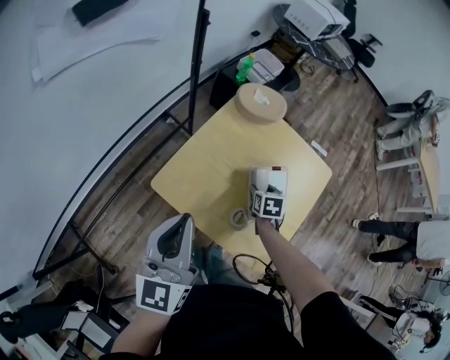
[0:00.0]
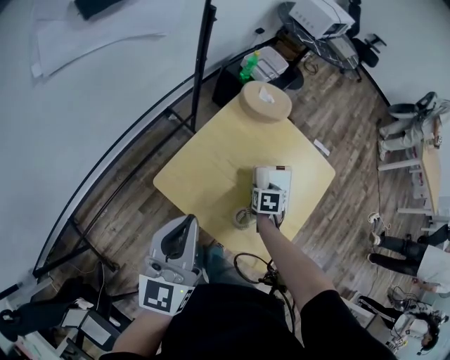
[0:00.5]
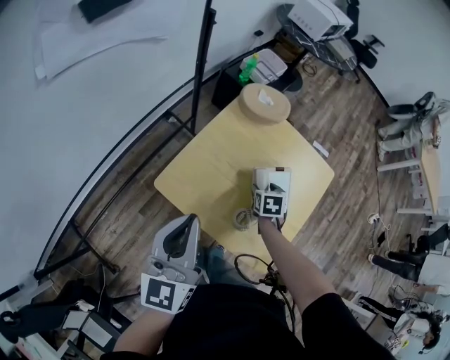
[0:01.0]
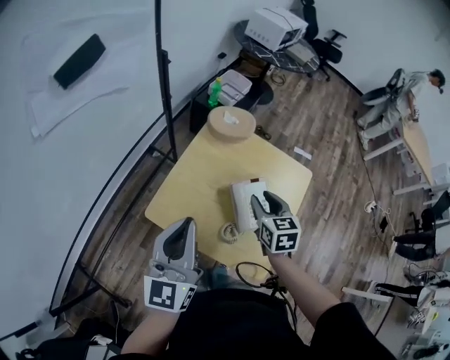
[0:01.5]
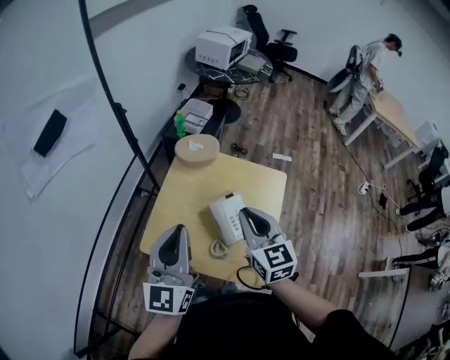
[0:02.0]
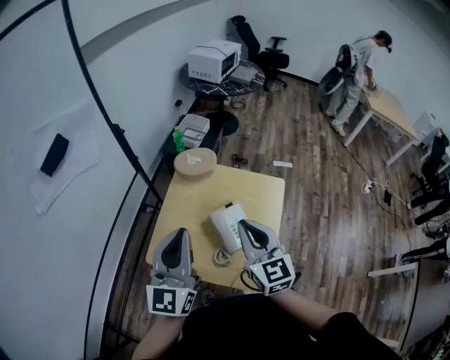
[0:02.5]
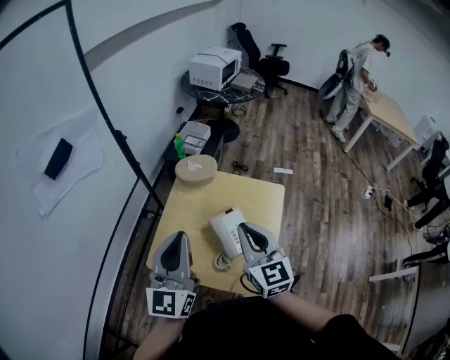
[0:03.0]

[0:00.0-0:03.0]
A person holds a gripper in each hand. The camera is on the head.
0:00.0 to 0:01.5: The left gripper moves about 5 cm; the right gripper shifts some 20 cm upward, and turns by roughly 20 degrees.
0:01.5 to 0:03.0: The right gripper travels upward and backward by roughly 20 cm, swivels some 30 degrees, and closes. The left gripper goes some 10 cm upward and to the right.

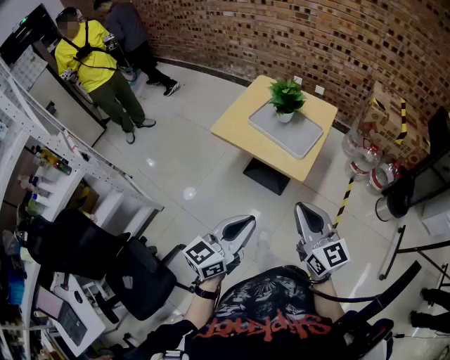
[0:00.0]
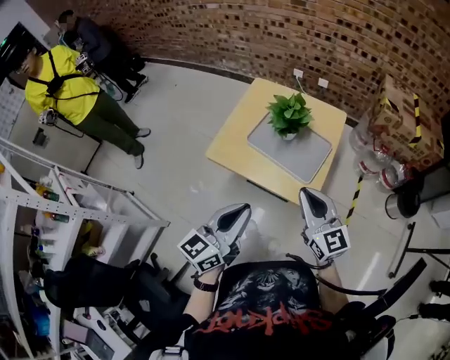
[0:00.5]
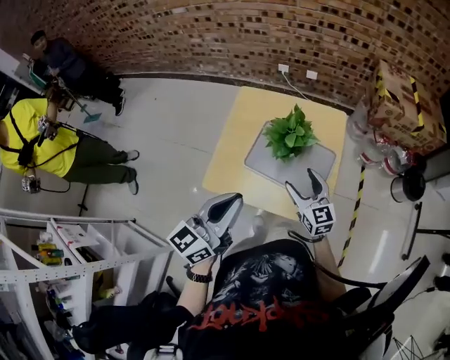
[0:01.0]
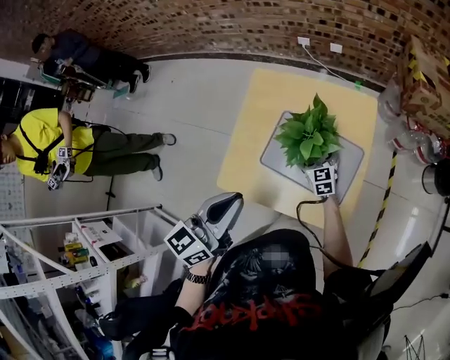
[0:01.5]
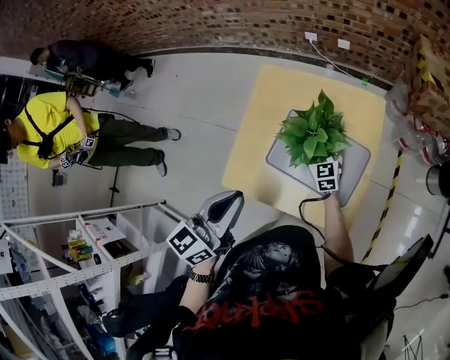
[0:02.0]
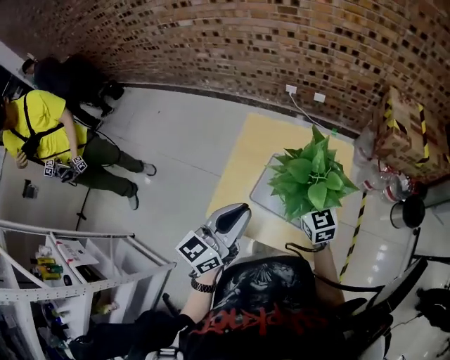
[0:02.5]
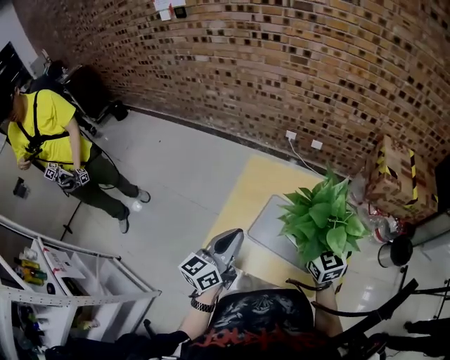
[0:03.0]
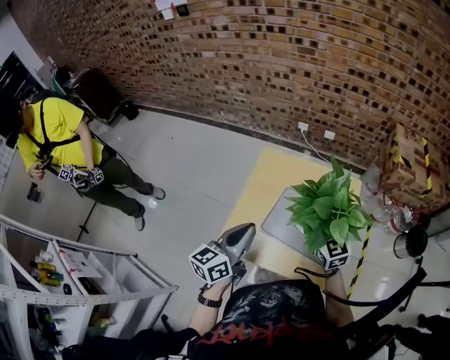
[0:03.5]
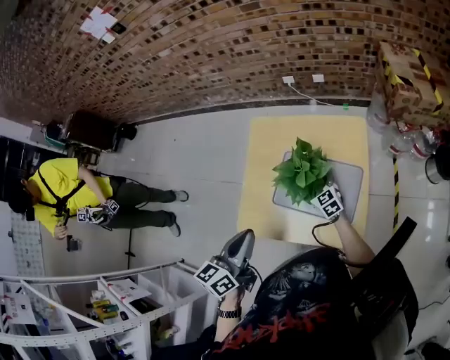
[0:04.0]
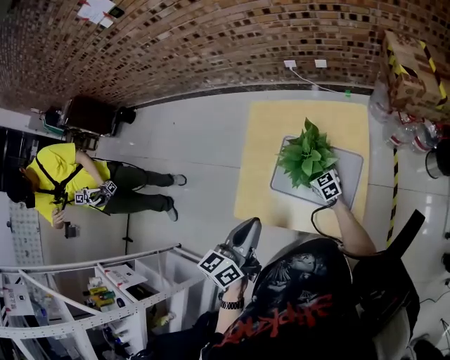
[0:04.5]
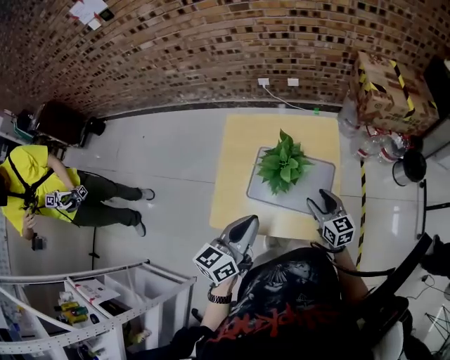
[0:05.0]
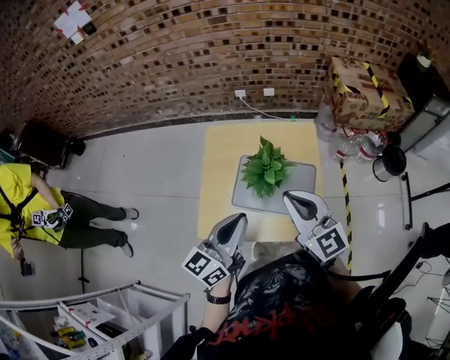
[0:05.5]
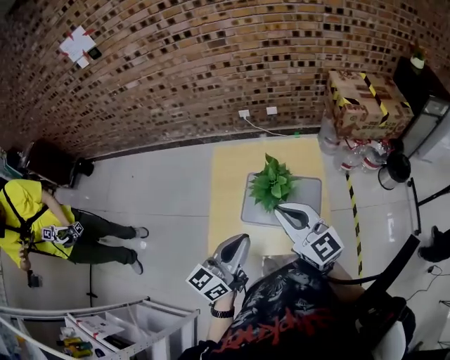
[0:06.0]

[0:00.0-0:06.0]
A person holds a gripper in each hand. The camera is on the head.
0:00.0 to 0:02.0: The pair of grippers is taken forward, about 60 cm. The right gripper shifts some 40 cm downward, swivels some 30 degrees, and opens its fingers.
0:02.0 to 0:04.0: The right gripper reaches approximately 30 cm upward, then returns.
0:04.0 to 0:06.0: The left gripper shifts by some 5 cm, and turns by roughly 30 degrees, while the right gripper moves upward and backward, about 40 cm, turns by some 30 degrees, and closes up.

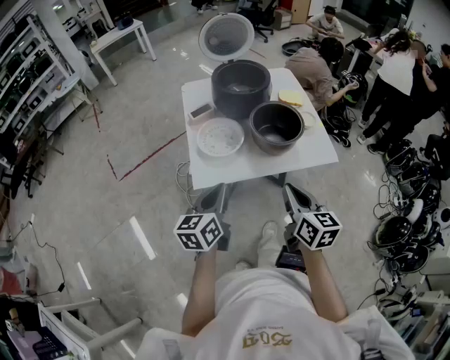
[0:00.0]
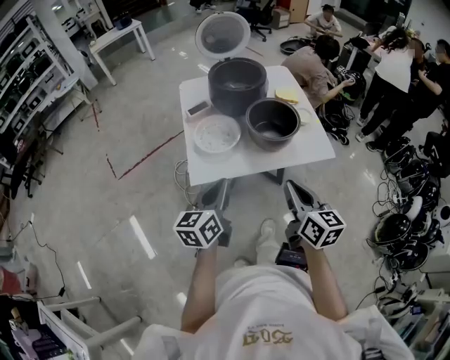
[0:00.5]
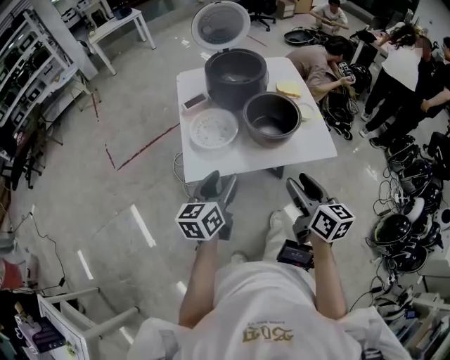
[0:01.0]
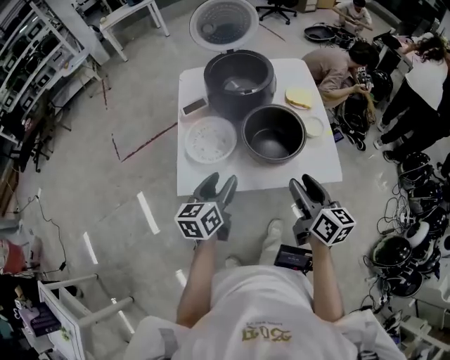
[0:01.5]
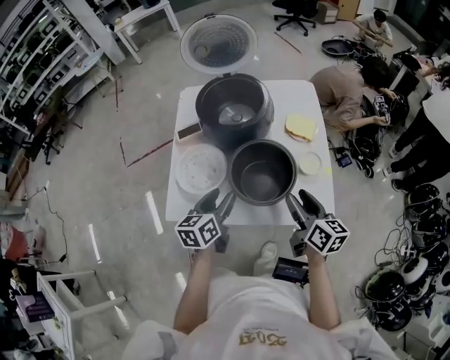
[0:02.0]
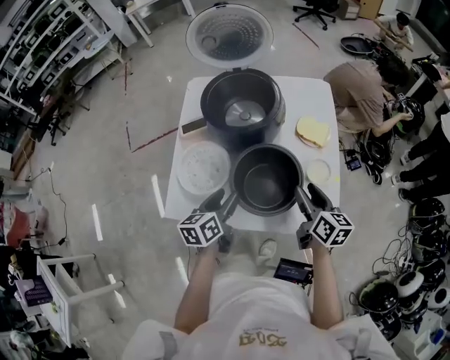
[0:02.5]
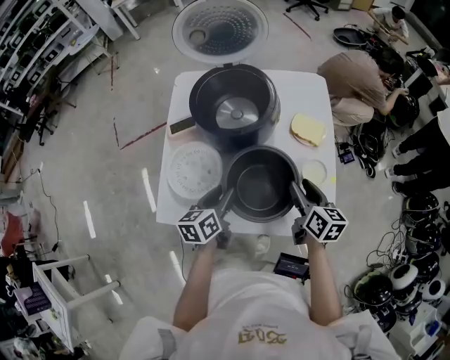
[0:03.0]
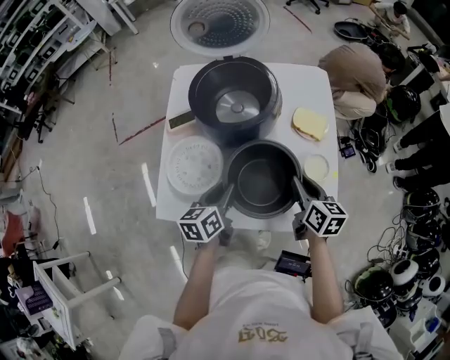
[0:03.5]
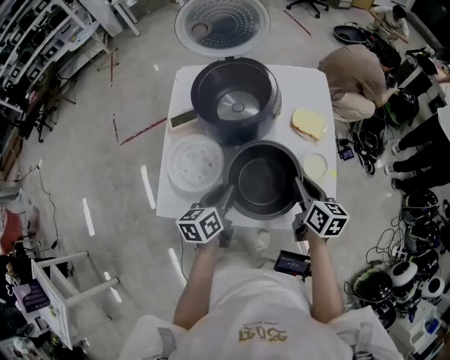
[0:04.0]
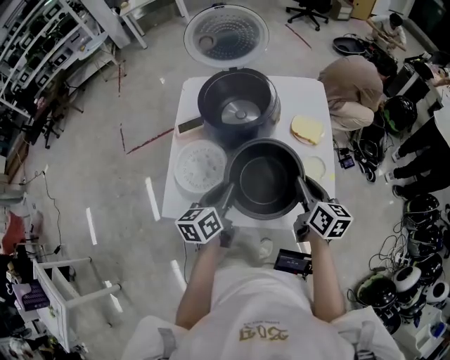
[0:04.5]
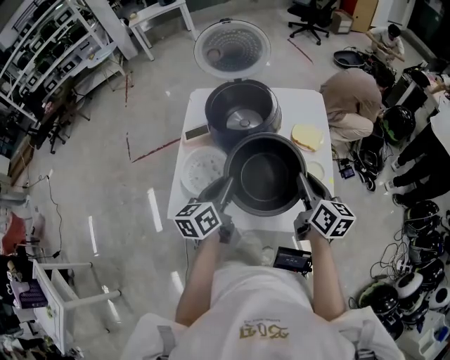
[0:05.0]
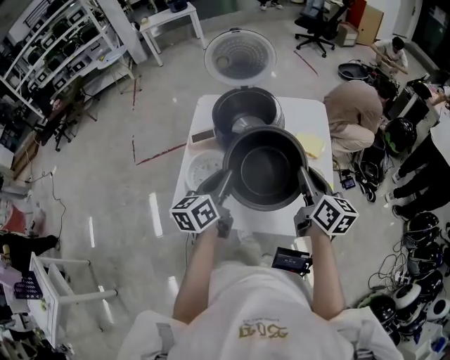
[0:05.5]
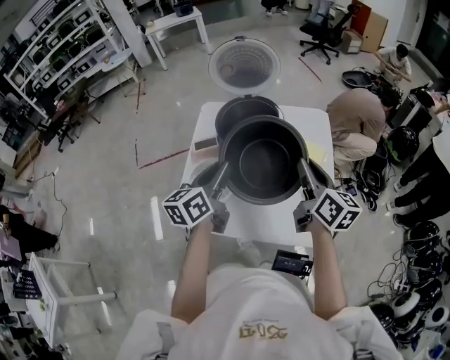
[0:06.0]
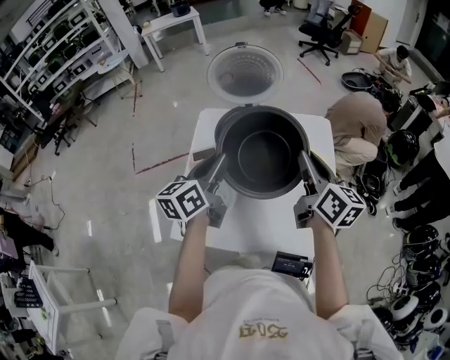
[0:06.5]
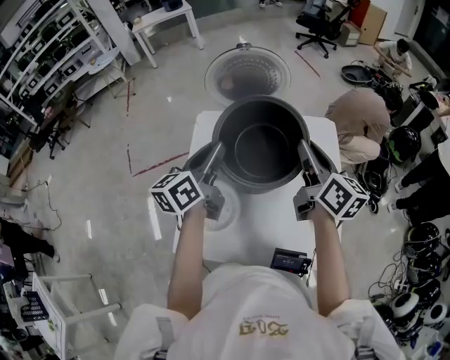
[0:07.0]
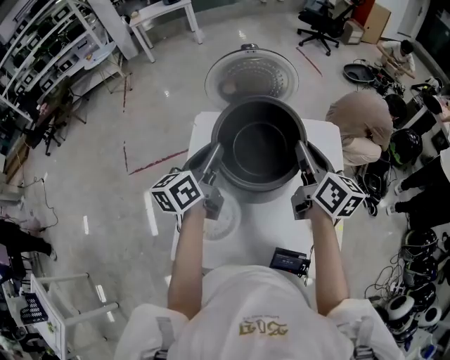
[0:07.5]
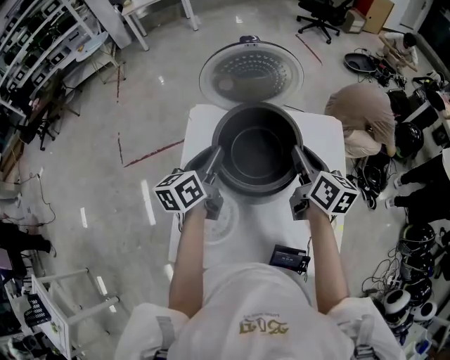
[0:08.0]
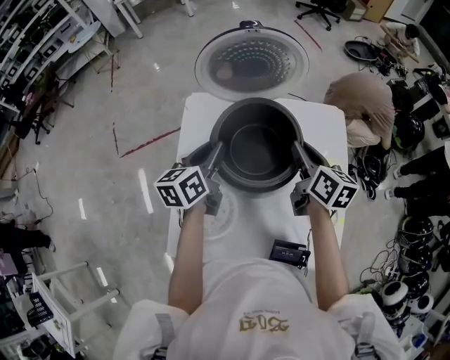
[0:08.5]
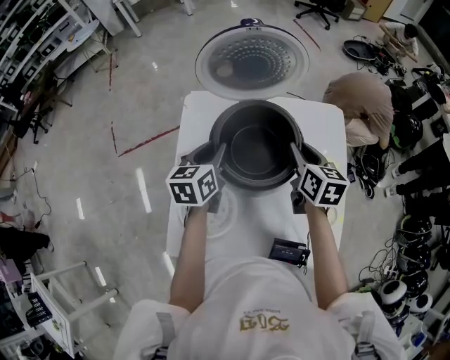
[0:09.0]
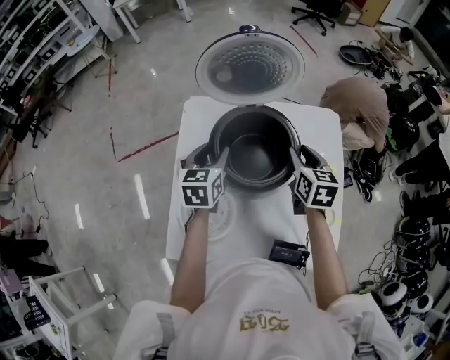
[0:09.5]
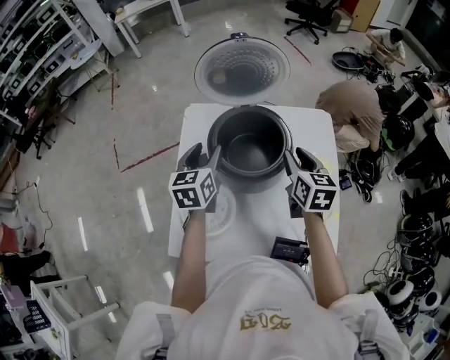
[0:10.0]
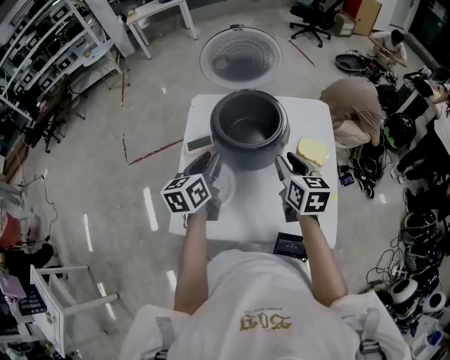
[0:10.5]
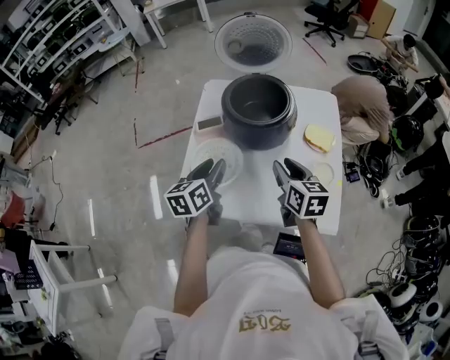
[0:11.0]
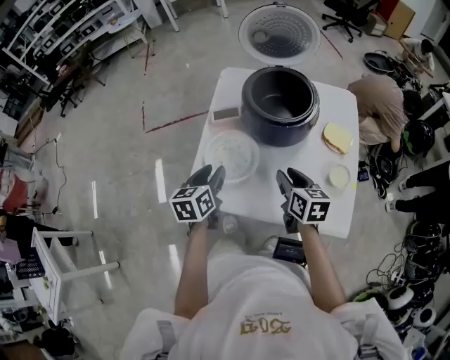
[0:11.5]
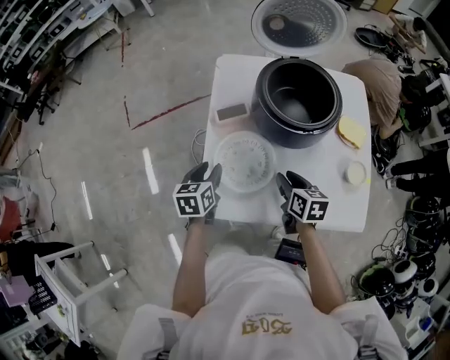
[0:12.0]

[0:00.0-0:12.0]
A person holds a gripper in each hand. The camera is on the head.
0:00.0 to 0:02.0: Both grippers travel together forward and to the right, roughly 30 cm. The right gripper opens up. Meanwhile the left gripper opens its fingers.
0:02.0 to 0:04.0: The right gripper shifts about 10 cm forward and downward, and closes; the left gripper ends up about 5 cm from where it was, and closes.
0:04.0 to 0:06.0: Both grippers move upward, approximately 20 cm. The right gripper swivels roughly 20 degrees. Meanwhile the left gripper rotates approximately 20 degrees.
0:06.0 to 0:08.0: The two grippers go some 25 cm forward.
0:08.0 to 0:10.0: The left gripper swivels roughly 30 degrees, and opens, while the right gripper ends up roughly 5 cm from where it was, and rotates some 20 degrees.
0:10.0 to 0:12.0: The grippers both shift to the left, backward and downward by some 30 cm. The right gripper swivels some 20 degrees.

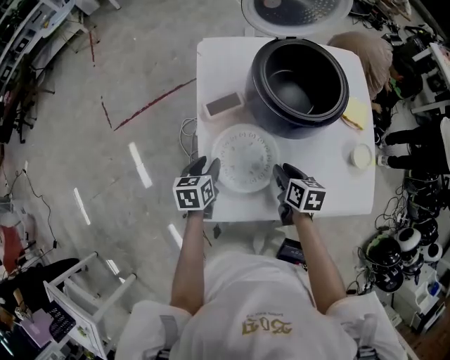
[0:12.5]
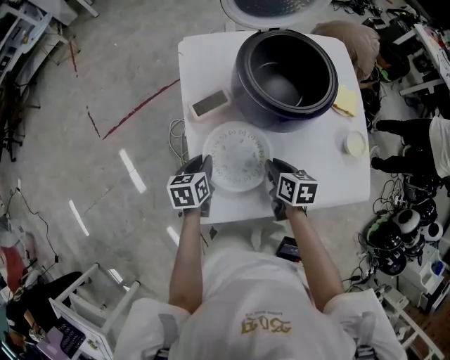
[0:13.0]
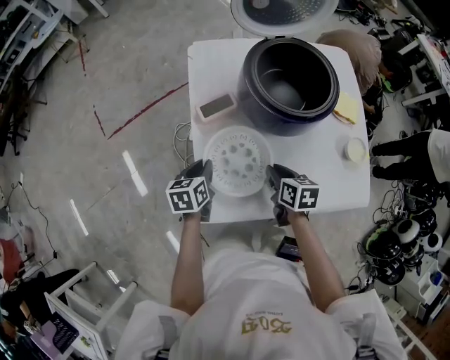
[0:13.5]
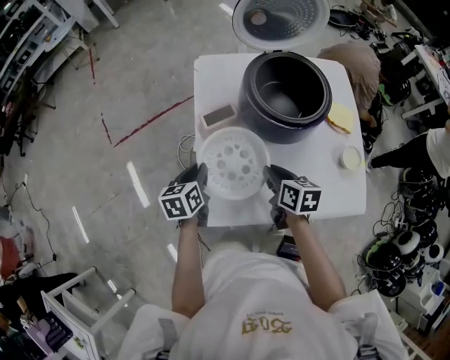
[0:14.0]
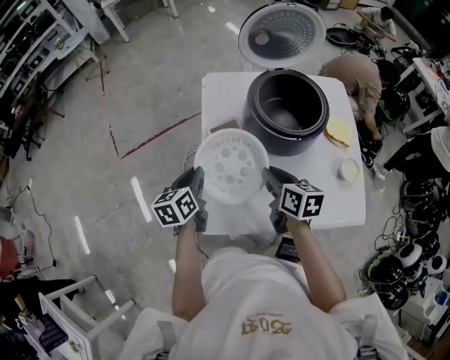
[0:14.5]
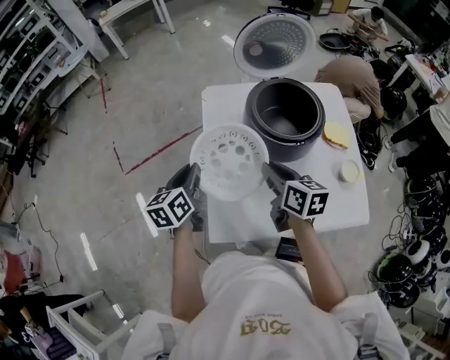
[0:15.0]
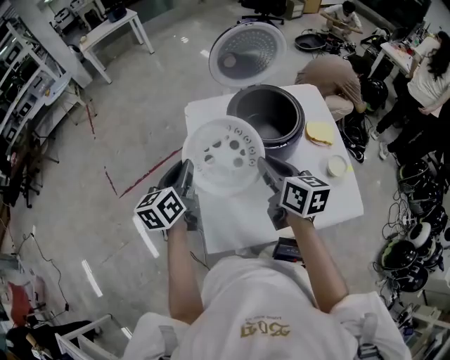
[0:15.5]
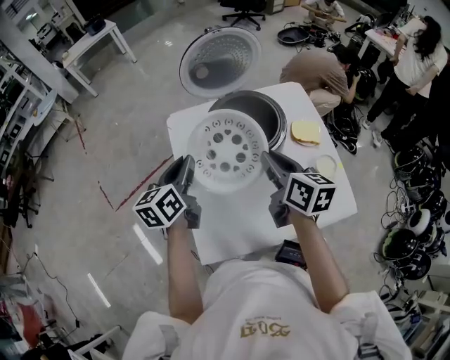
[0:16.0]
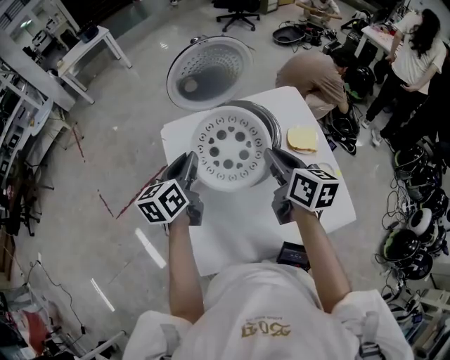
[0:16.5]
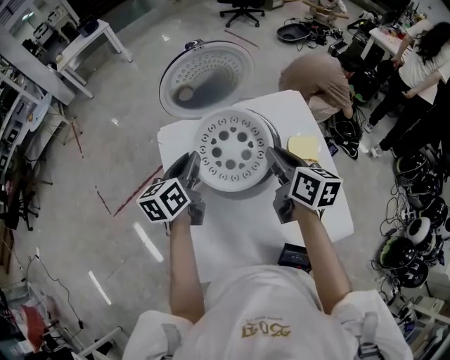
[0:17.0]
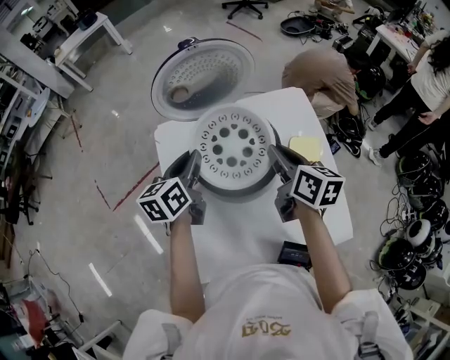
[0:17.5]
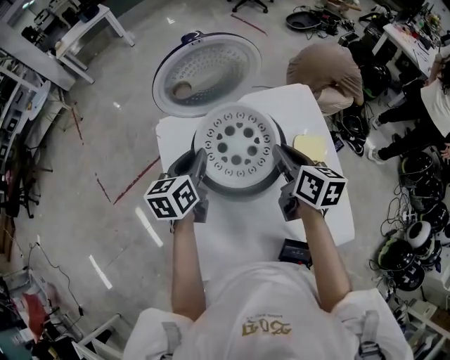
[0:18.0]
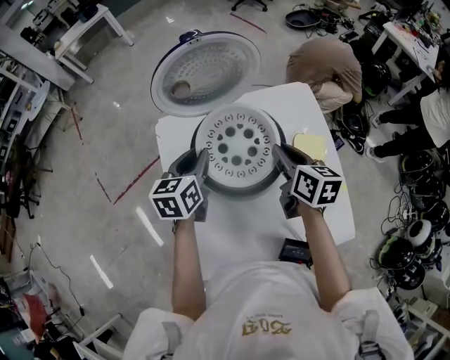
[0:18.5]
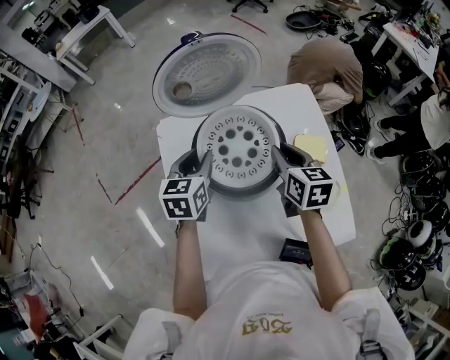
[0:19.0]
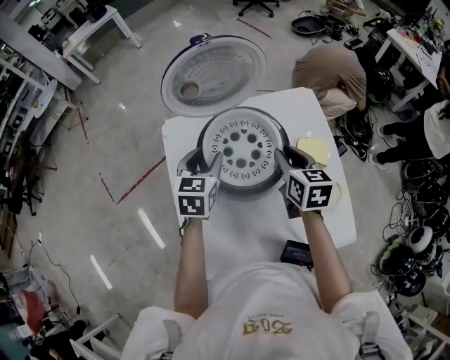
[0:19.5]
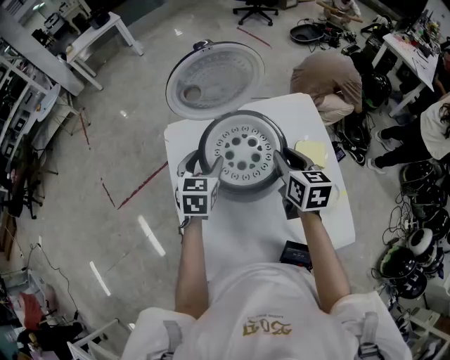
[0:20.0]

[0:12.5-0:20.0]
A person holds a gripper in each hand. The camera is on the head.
0:12.5 to 0:14.5: Both grippers travel together upward, some 10 cm. The left gripper closes its fingers.
0:14.5 to 0:16.5: The left gripper heads forward, to the right and upward, covering some 25 cm, and rotates approximately 20 degrees. Meanwhile the right gripper travels to the right, upward and forward by some 20 cm, and turns by approximately 20 degrees.
0:16.5 to 0:18.0: The two grippers go about 10 cm forward and downward.
0:18.0 to 0:20.0: The left gripper changes its angle by roughly 30 degrees, and opens.
